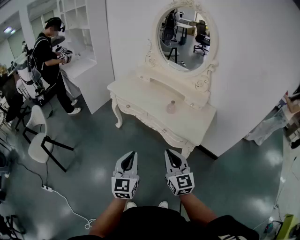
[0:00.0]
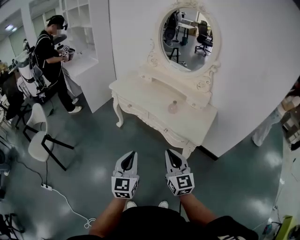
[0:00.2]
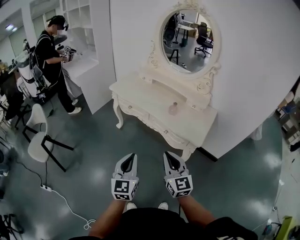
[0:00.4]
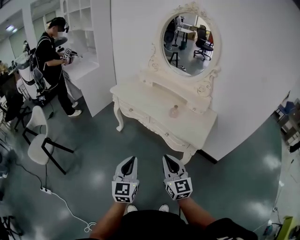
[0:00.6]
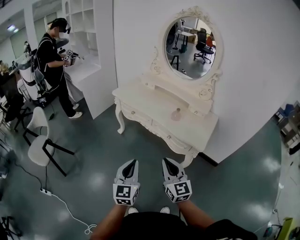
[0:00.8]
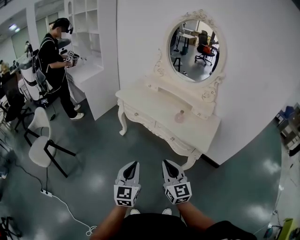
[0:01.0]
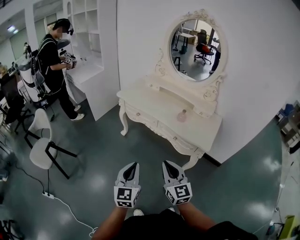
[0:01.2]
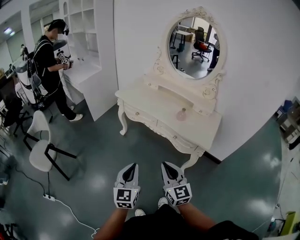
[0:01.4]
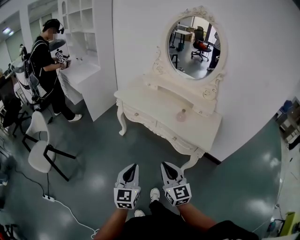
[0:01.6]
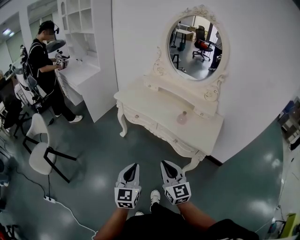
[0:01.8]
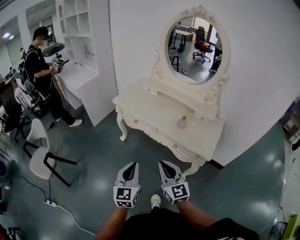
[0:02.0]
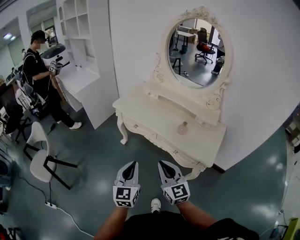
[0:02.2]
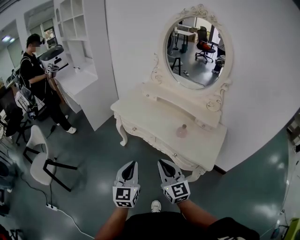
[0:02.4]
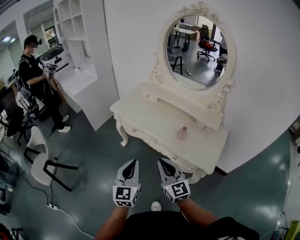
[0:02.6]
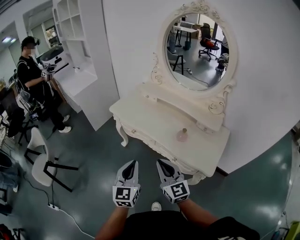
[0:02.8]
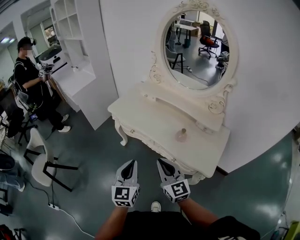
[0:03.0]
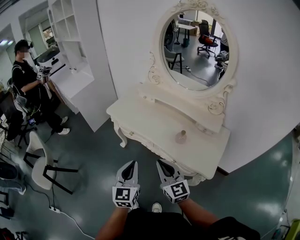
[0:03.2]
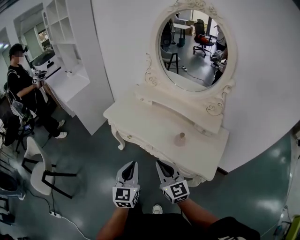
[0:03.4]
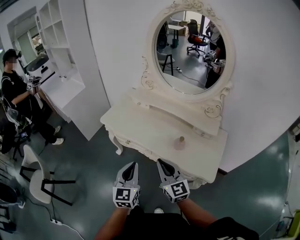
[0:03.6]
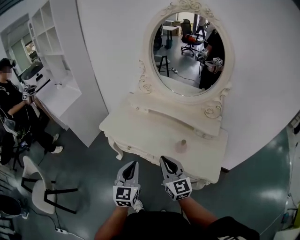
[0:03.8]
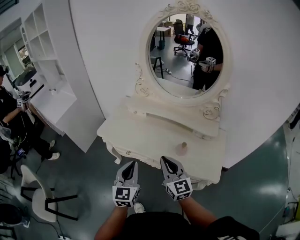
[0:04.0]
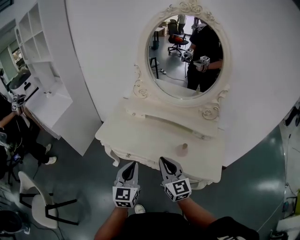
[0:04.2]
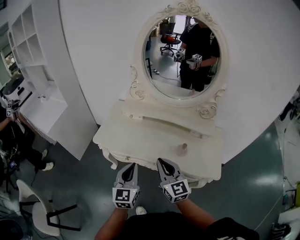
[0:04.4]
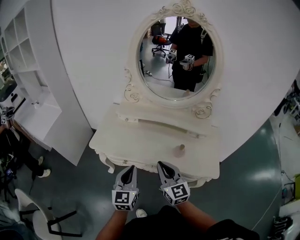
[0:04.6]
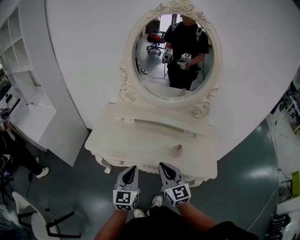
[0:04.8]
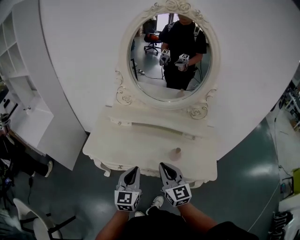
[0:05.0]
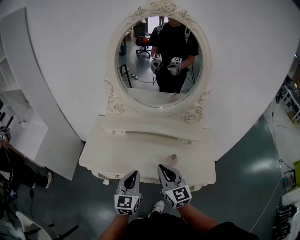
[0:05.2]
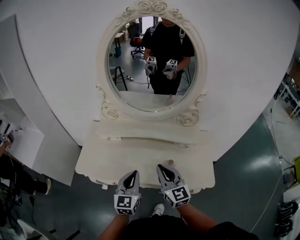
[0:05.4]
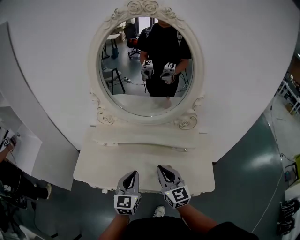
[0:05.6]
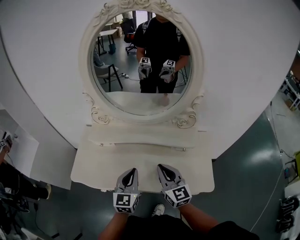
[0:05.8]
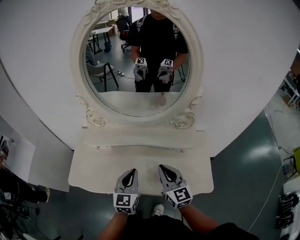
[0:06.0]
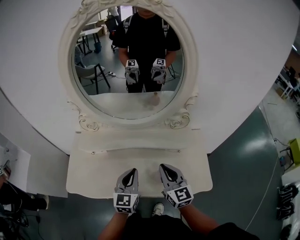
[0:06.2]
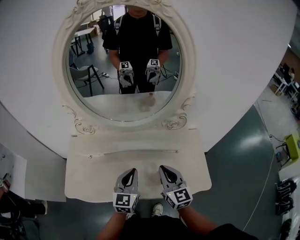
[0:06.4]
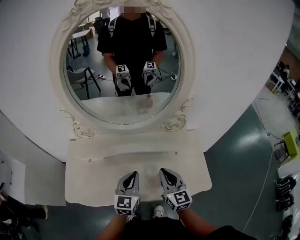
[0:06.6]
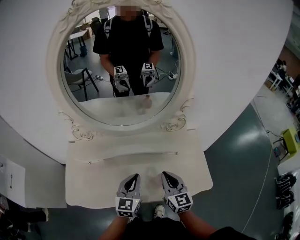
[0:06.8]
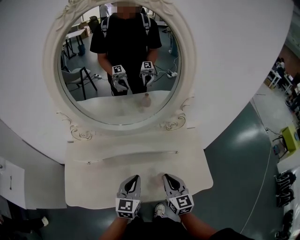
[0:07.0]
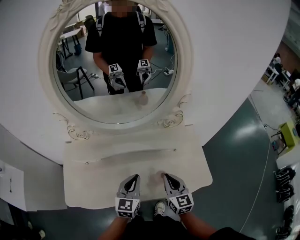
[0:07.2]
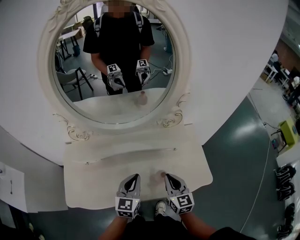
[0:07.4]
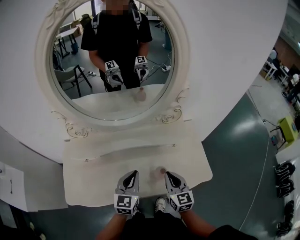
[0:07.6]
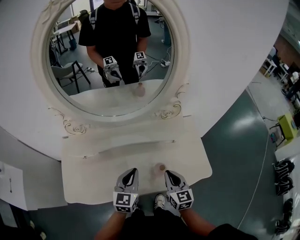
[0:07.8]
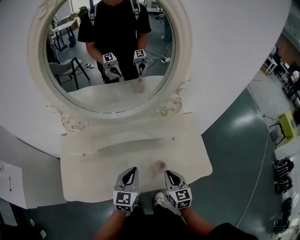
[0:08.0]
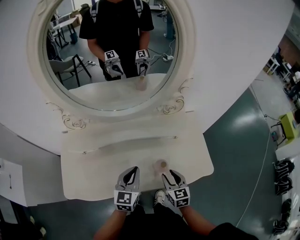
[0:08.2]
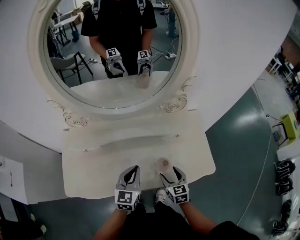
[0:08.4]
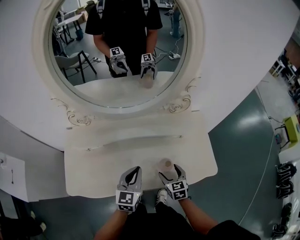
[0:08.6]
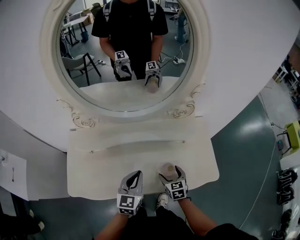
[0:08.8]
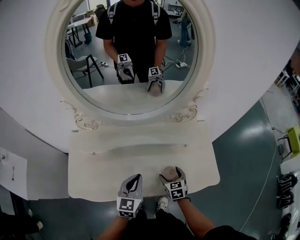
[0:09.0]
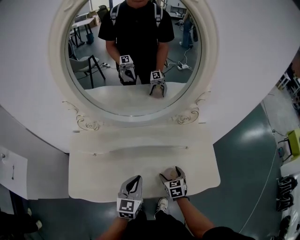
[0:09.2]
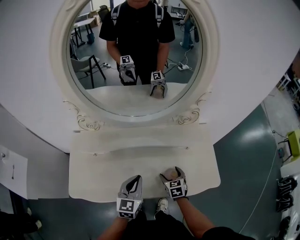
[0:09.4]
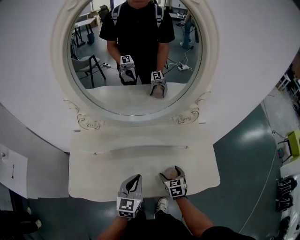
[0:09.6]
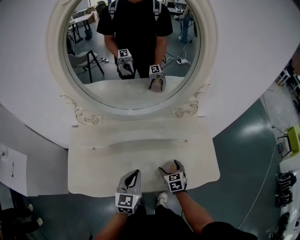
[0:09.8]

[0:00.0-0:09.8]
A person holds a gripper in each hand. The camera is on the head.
0:00.0 to 0:01.4: The two grippers go roughly 10 cm to the left.
0:01.4 to 0:02.8: The left gripper travels forward and to the right by roughly 20 cm. The right gripper moves forward, approximately 20 cm.
0:02.8 to 0:04.2: Both grippers move forward, some 15 cm.
0:04.2 to 0:05.6: The grippers both shift forward and to the right by about 15 cm.
0:05.6 to 0:07.0: The left gripper is displaced forward by about 10 cm. Meanwhile the right gripper moves downward and to the right, about 10 cm, and swivels some 20 degrees.
0:07.0 to 0:08.4: The right gripper heads downward, covering roughly 15 cm, rotates some 20 degrees, and opens.
0:08.4 to 0:09.8: The right gripper moves forward and downward, some 10 cm.

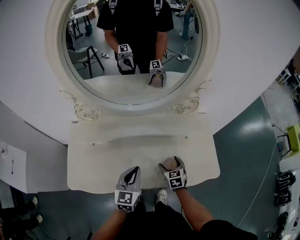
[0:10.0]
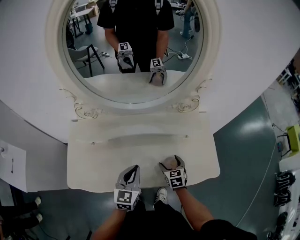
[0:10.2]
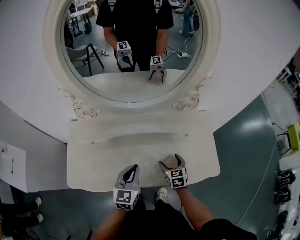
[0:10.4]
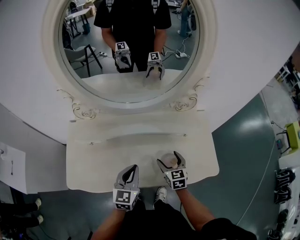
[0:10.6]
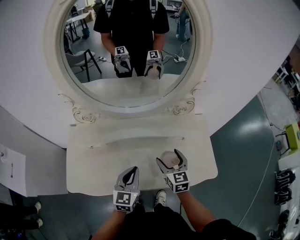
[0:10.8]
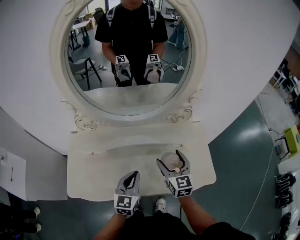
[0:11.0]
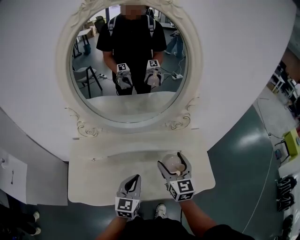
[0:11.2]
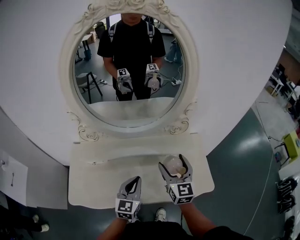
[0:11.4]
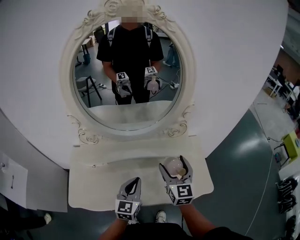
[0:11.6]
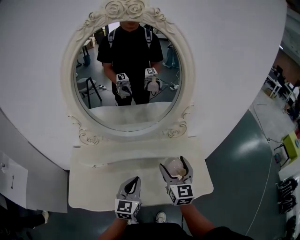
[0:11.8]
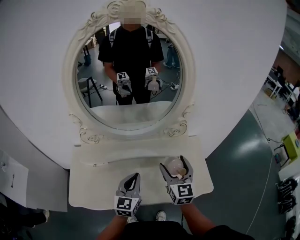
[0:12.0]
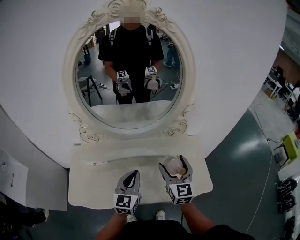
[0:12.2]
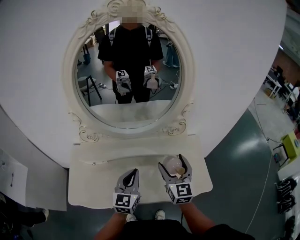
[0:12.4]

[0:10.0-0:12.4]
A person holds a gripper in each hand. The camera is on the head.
0:10.0 to 0:11.2: The right gripper travels upward by approximately 25 cm, and points its fingers about 30 degrees further upward.
0:11.2 to 0:12.4: The left gripper heads upward, covering roughly 5 cm.

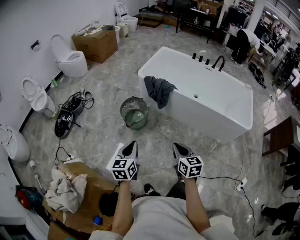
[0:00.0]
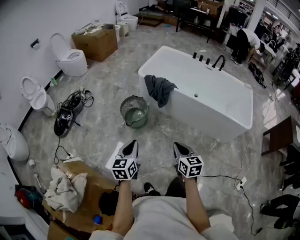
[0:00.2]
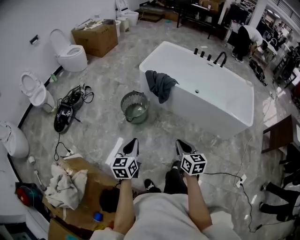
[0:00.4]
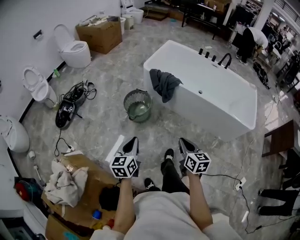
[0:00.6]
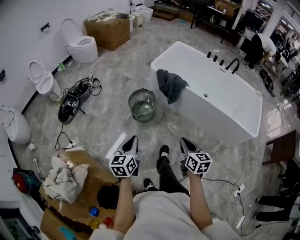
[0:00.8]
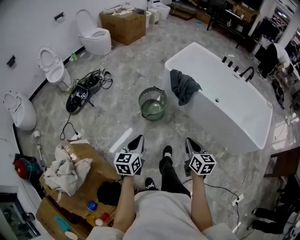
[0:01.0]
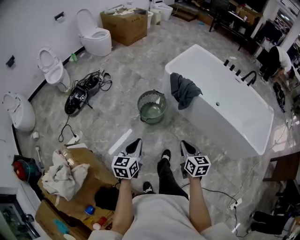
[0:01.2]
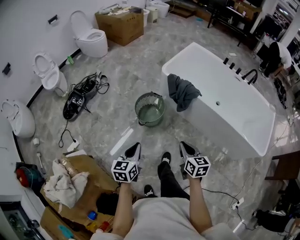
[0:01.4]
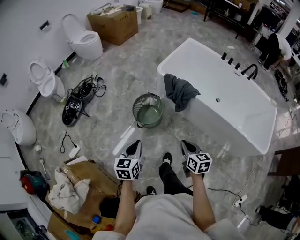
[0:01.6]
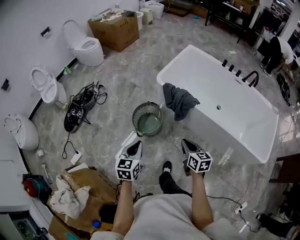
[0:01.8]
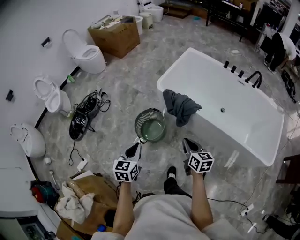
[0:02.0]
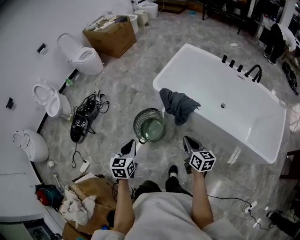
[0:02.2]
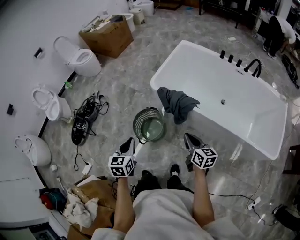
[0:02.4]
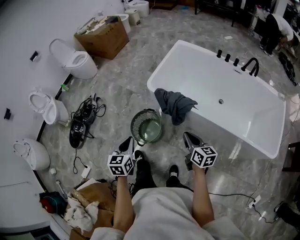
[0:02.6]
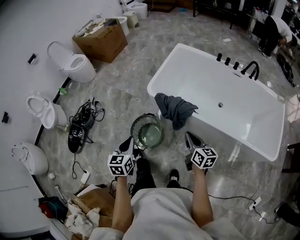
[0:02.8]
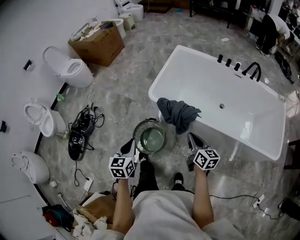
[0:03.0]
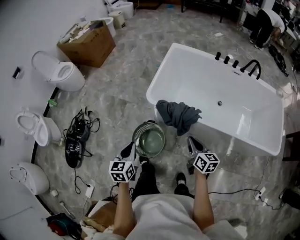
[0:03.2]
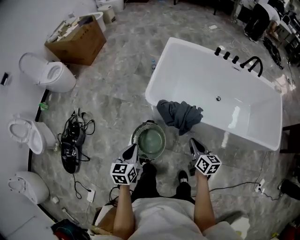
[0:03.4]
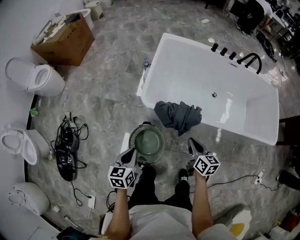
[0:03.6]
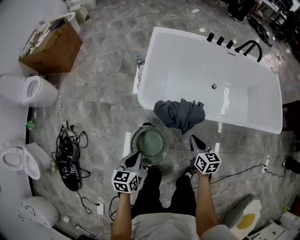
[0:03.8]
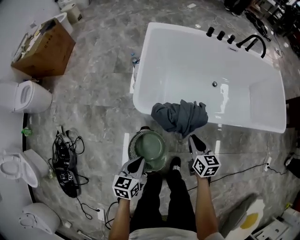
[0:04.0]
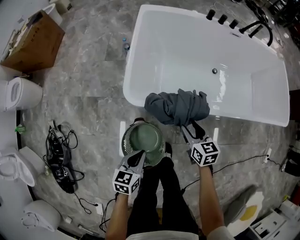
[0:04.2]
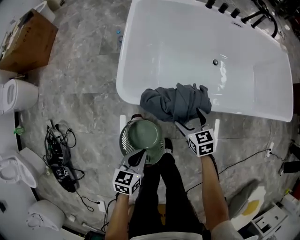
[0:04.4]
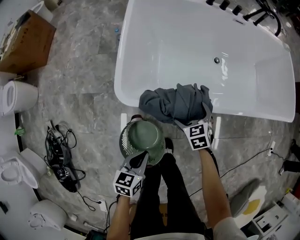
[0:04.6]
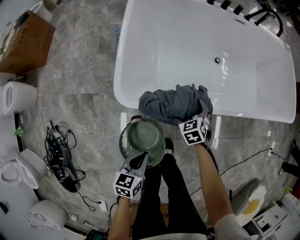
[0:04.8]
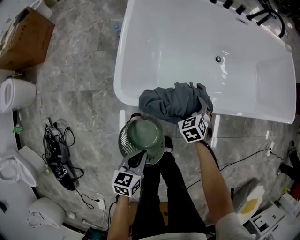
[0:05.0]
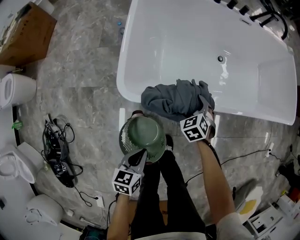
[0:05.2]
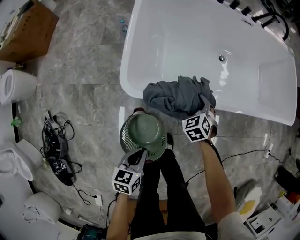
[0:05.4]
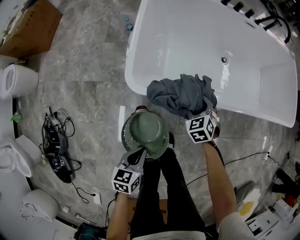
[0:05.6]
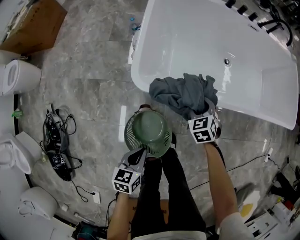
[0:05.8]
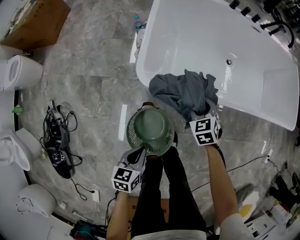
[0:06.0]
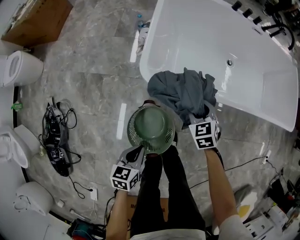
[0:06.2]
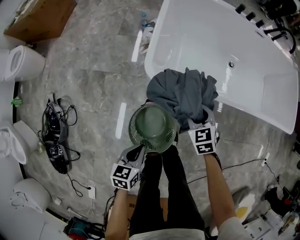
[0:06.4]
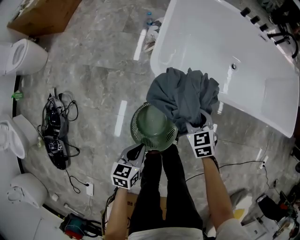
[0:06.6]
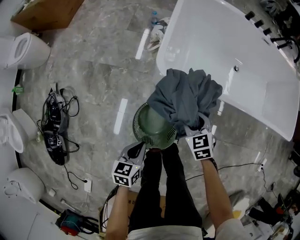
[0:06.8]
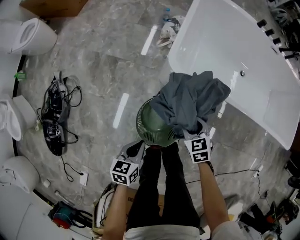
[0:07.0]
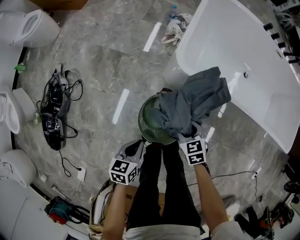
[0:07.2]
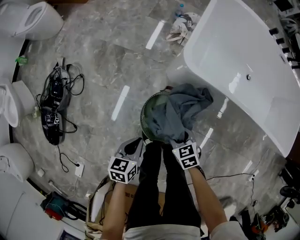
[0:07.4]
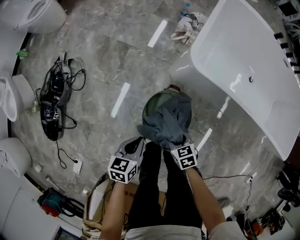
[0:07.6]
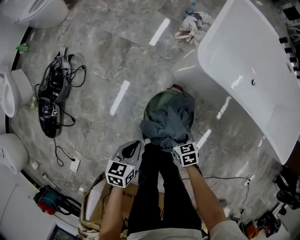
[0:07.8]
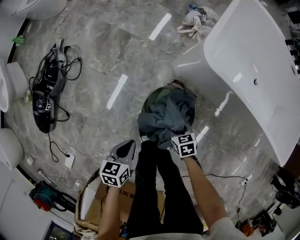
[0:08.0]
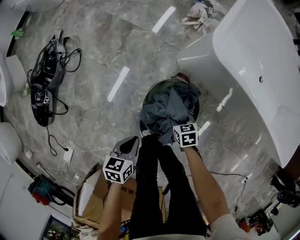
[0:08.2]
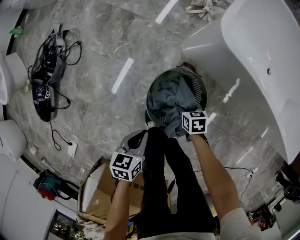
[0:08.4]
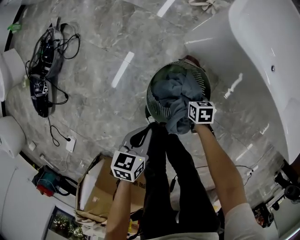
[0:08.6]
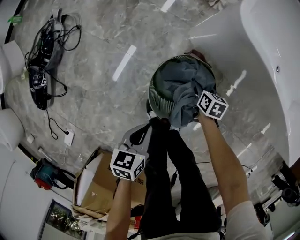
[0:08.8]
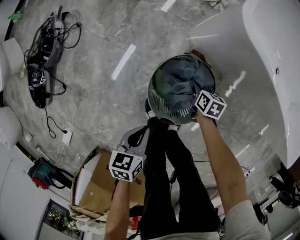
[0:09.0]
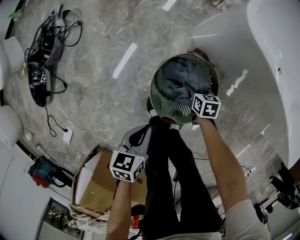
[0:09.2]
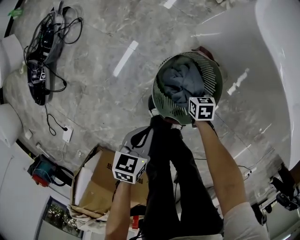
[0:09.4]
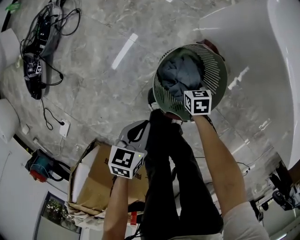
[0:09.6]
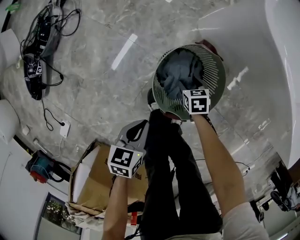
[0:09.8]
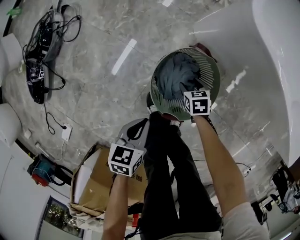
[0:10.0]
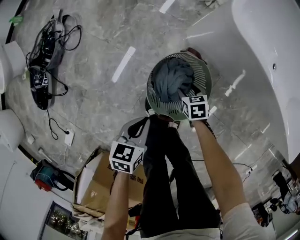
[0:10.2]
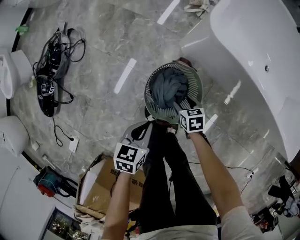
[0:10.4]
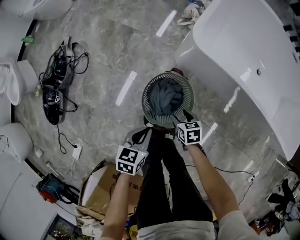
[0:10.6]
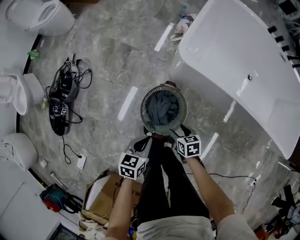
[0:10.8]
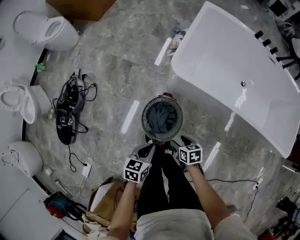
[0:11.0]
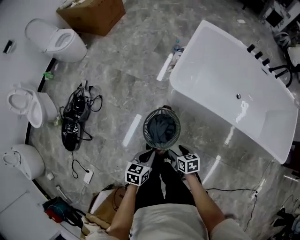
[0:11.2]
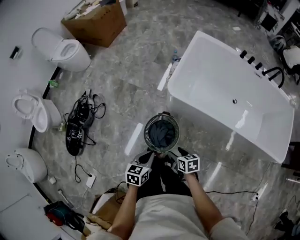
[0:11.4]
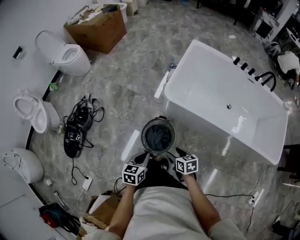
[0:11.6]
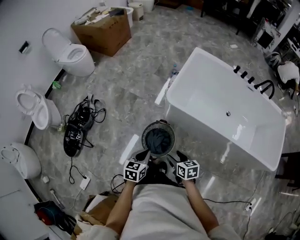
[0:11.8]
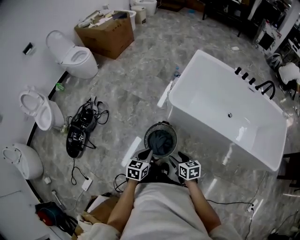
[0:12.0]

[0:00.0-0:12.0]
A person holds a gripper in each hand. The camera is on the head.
0:00.0 to 0:01.6: Both grippers move forward, approximately 20 cm.
0:01.6 to 0:03.0: The two grippers go approximately 25 cm forward. The right gripper changes its angle by approximately 20 degrees.
0:03.0 to 0:04.4: The two grippers go roughly 30 cm downward. The left gripper rotates roughly 40 degrees. The right gripper turns by approximately 40 degrees, and opens up.
0:04.4 to 0:06.0: The right gripper travels downward and back again, some 10 cm each way, swivels approximately 20 degrees, and closes up, while the left gripper shifts about 5 cm backward.
0:06.0 to 0:07.6: The right gripper changes place by roughly 35 cm, and rotates some 30 degrees, while the left gripper moves approximately 15 cm.
0:07.6 to 0:09.0: The left gripper heads downward and backward, covering roughly 15 cm. The right gripper goes roughly 25 cm downward and forward, and swivels approximately 30 degrees.
0:09.0 to 0:10.4: The left gripper heads upward, covering about 5 cm. The right gripper is displaced backward and upward by some 10 cm, and rotates some 20 degrees.
0:10.4 to 0:12.0: The two grippers go roughly 35 cm upward. The right gripper swivels about 20 degrees.
